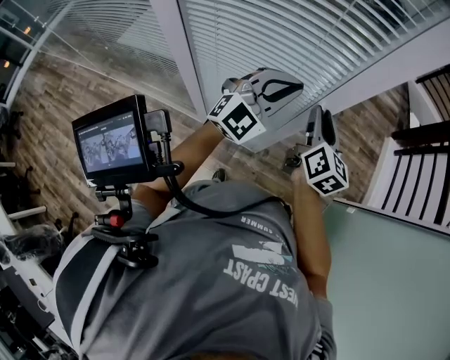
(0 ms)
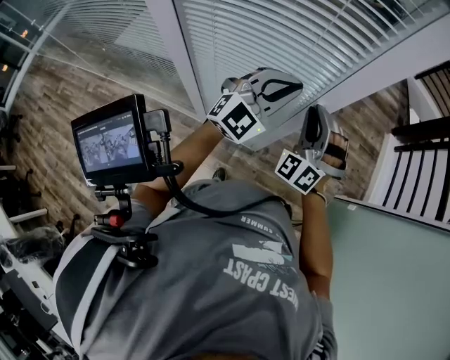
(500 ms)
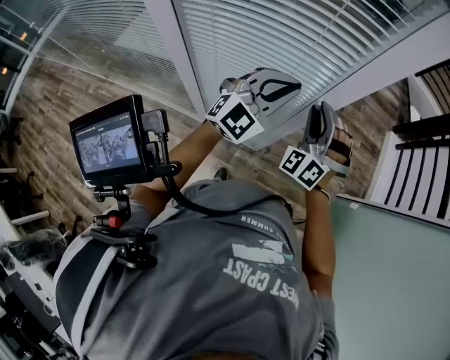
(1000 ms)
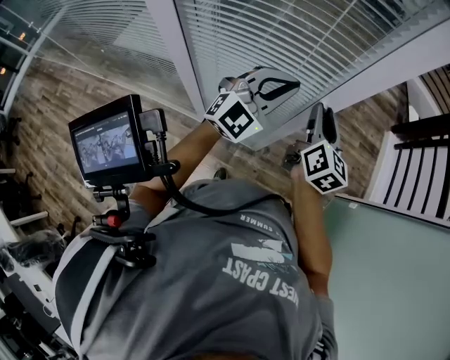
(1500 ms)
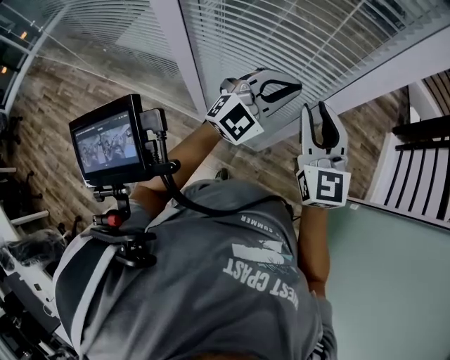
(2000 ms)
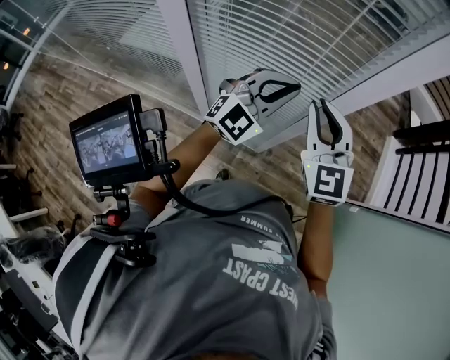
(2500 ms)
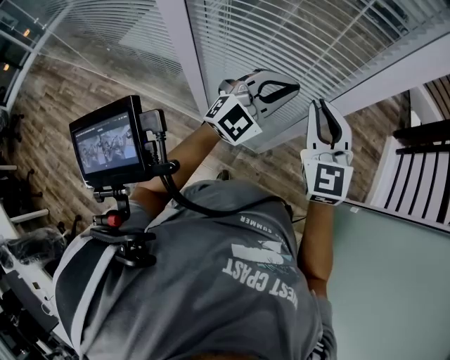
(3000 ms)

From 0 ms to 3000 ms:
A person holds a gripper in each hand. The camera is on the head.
From 1500 ms to 3000 ms: The right gripper goes approximately 10 cm upward and to the left, and twists approximately 50 degrees counterclockwise, seen from behind.

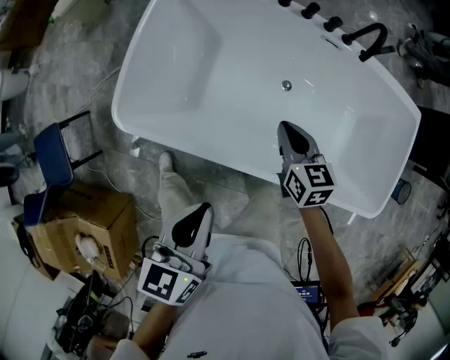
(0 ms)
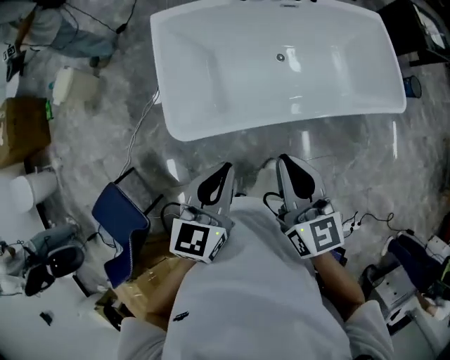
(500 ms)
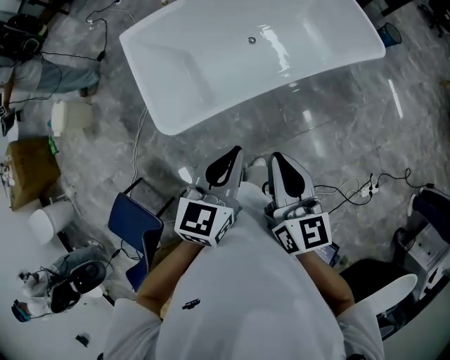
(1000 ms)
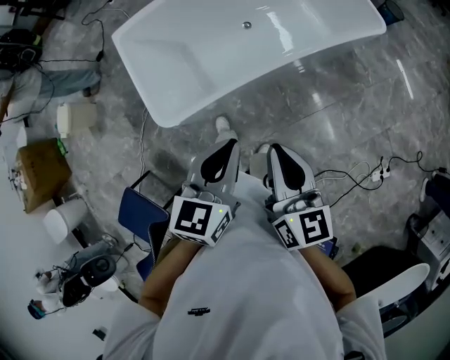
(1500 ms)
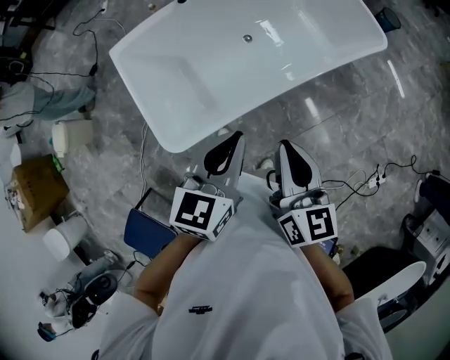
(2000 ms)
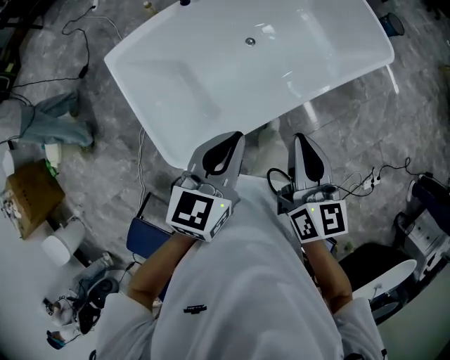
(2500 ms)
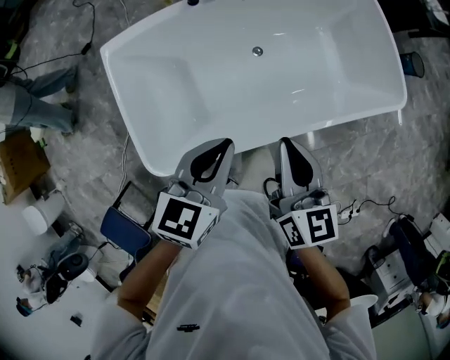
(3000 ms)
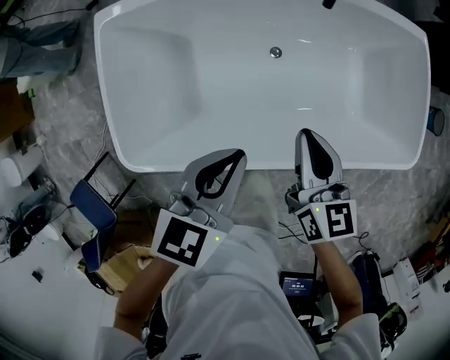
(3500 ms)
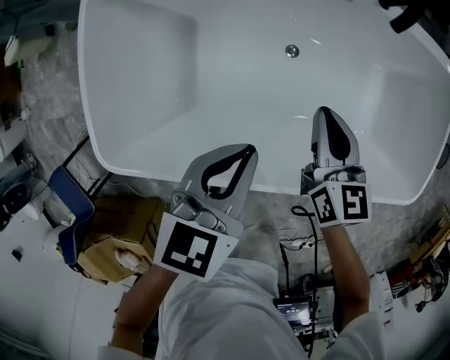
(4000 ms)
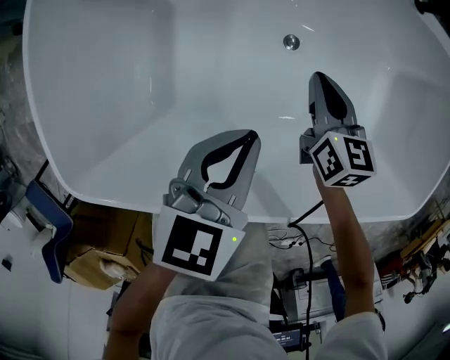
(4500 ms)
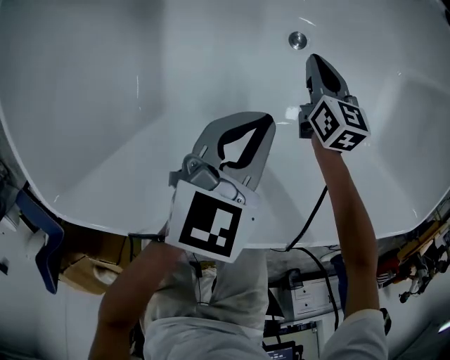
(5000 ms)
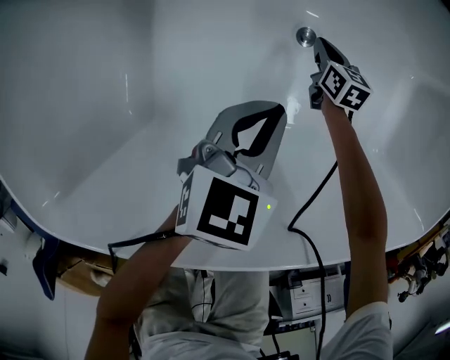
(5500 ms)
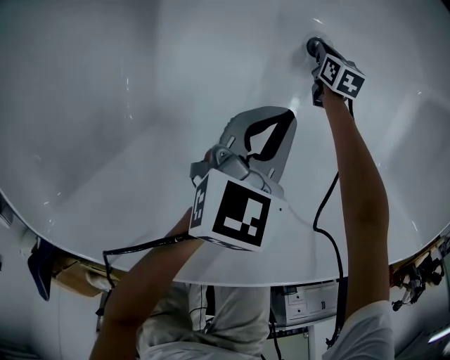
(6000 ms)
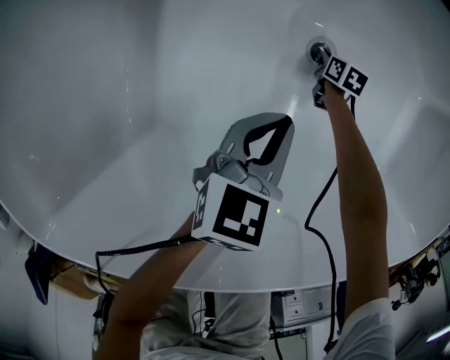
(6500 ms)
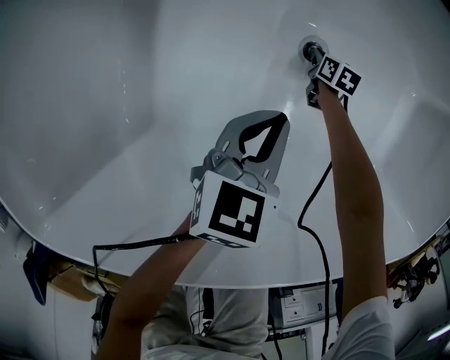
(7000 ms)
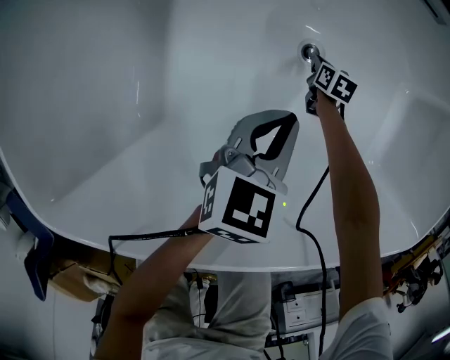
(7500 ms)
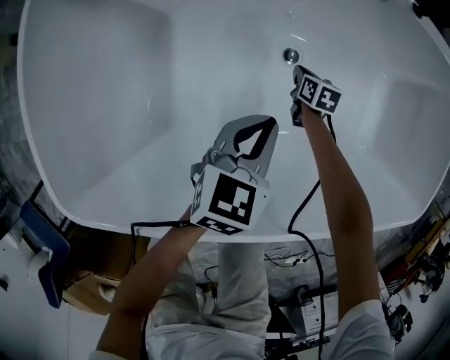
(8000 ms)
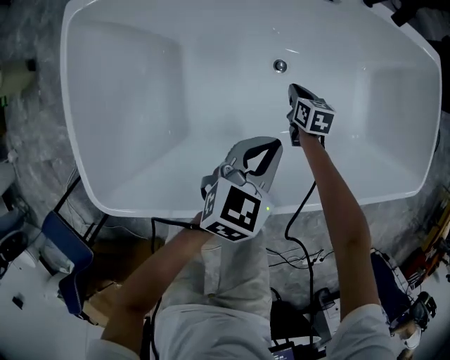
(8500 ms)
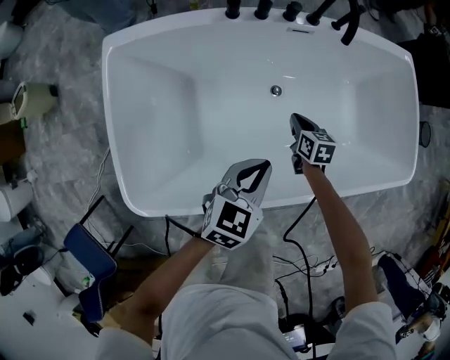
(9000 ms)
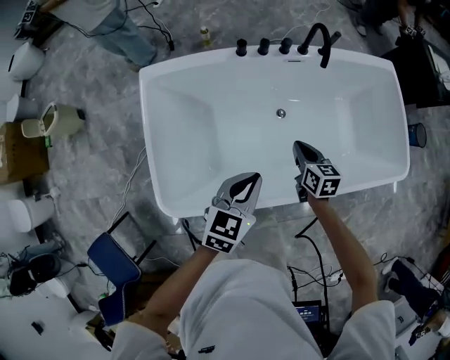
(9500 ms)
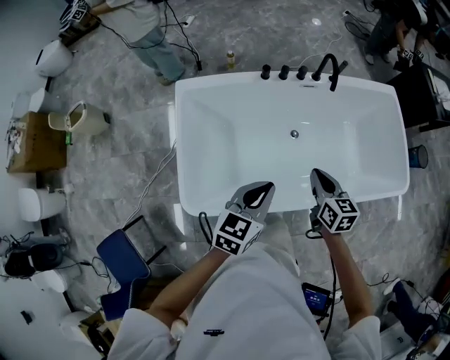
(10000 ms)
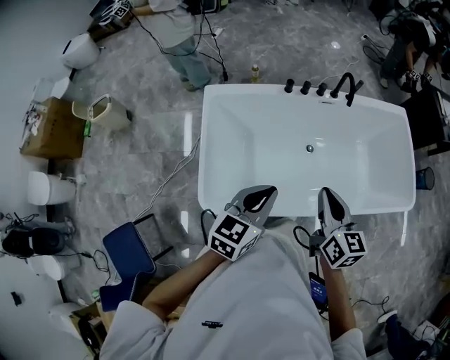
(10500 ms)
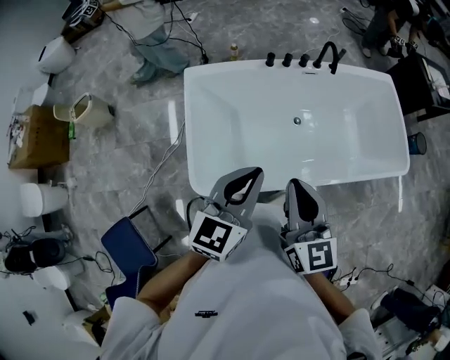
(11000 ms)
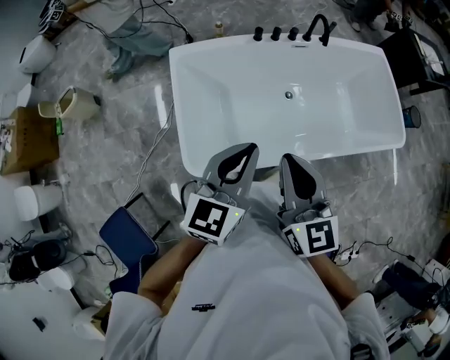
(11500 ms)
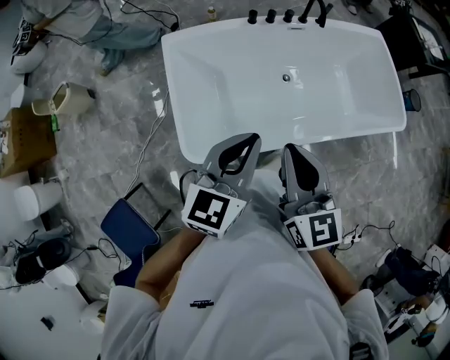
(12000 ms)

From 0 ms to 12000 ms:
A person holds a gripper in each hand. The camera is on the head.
From 0 ms to 2000 ms: The left gripper goes about 15 cm upward, and rotates some 50 degrees; the right gripper ends up approximately 40 cm from where it was, and swivels approximately 50 degrees.
From 2000 ms to 4000 ms: The right gripper moves some 60 cm, and turns by approximately 40 degrees, while the left gripper ends up some 40 cm from where it was, and turns by about 30 degrees.
From 4000 ms to 6000 ms: The right gripper heads downward, covering roughly 70 cm, and swivels about 30 degrees. The left gripper is displaced downward by about 40 cm.
From 6000 ms to 8000 ms: The two grippers go some 15 cm upward and backward.
From 8000 ms to 10000 ms: The two grippers go about 50 cm upward. The right gripper changes its angle by about 20 degrees.
From 10000 ms to 12000 ms: The left gripper moves upward, backward and to the left, roughly 15 cm. The right gripper is displaced upward, backward and to the left by about 30 cm, and changes its angle by some 30 degrees.

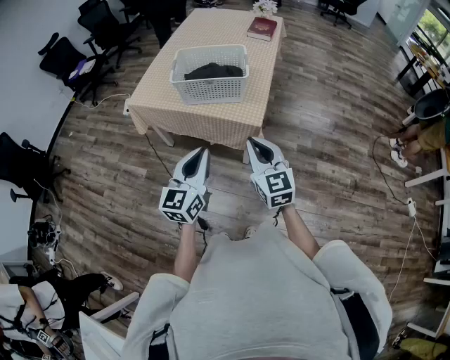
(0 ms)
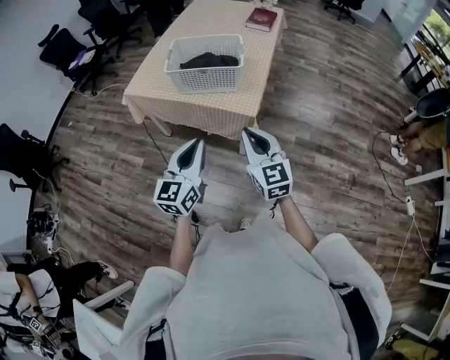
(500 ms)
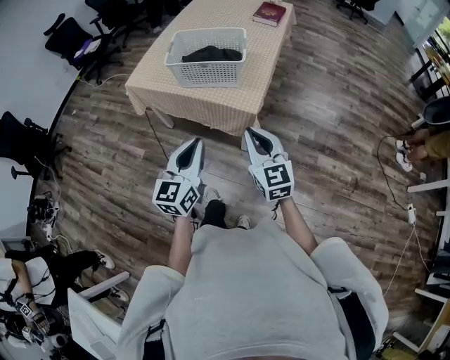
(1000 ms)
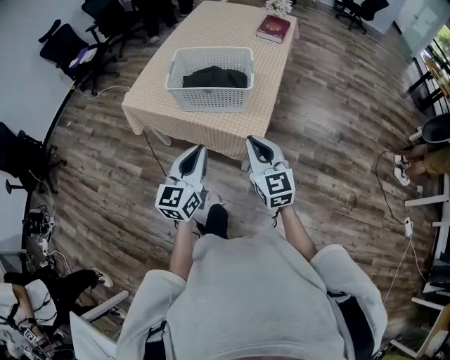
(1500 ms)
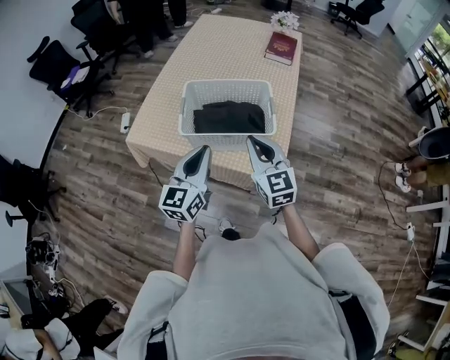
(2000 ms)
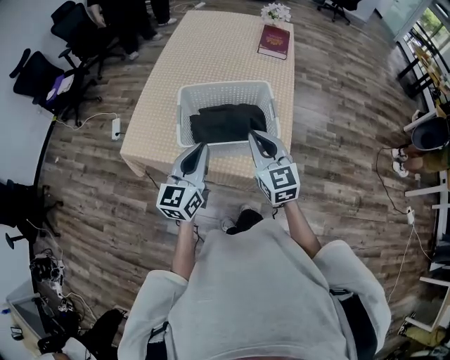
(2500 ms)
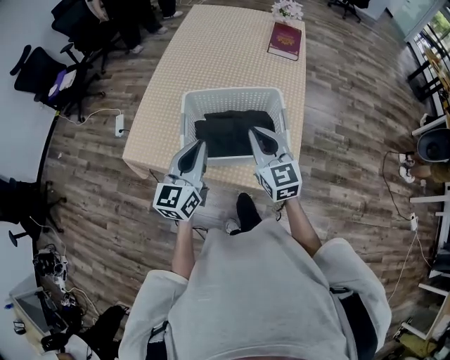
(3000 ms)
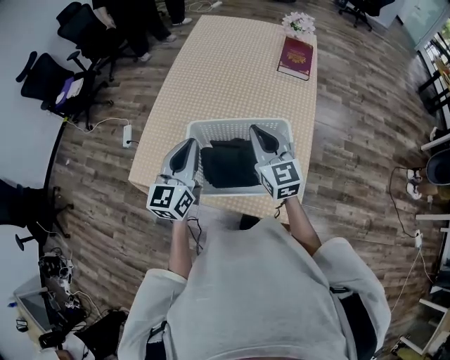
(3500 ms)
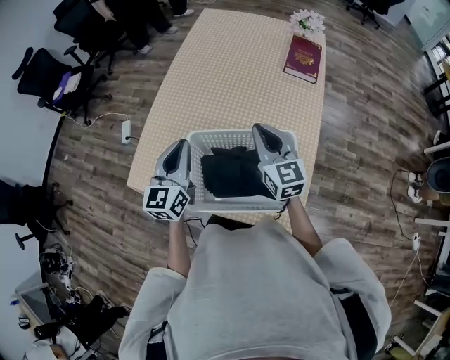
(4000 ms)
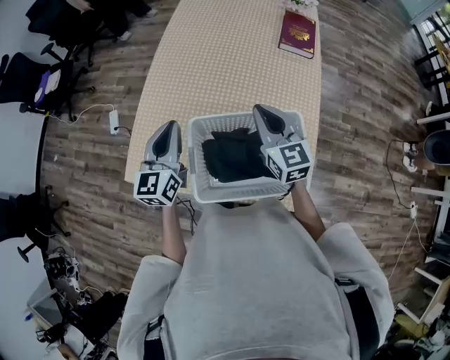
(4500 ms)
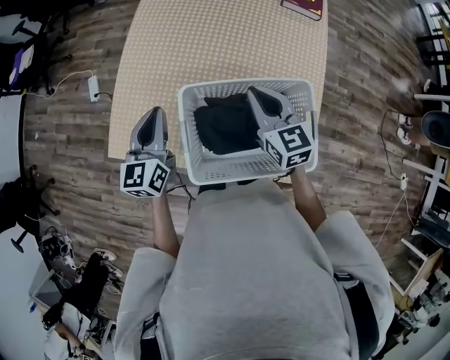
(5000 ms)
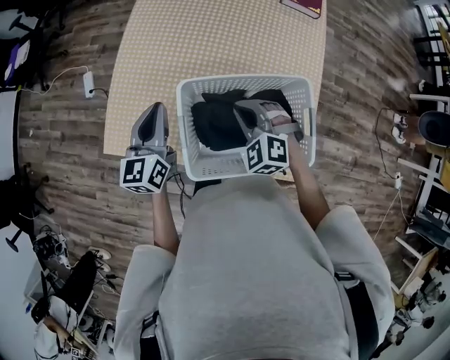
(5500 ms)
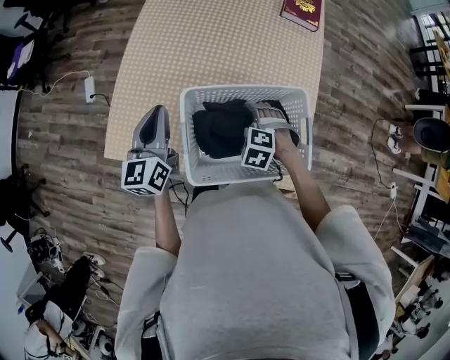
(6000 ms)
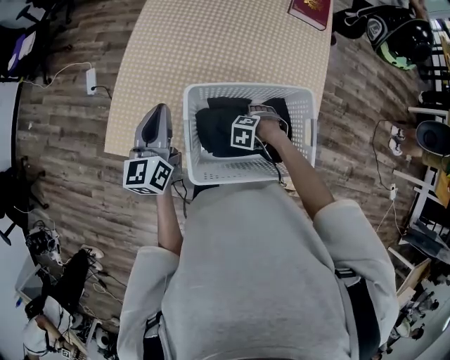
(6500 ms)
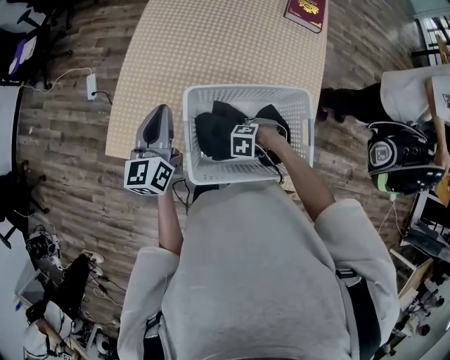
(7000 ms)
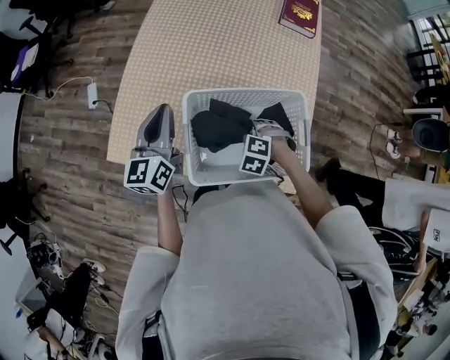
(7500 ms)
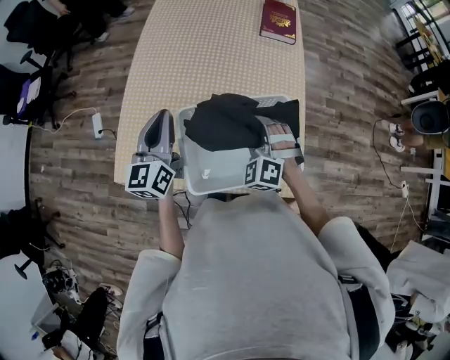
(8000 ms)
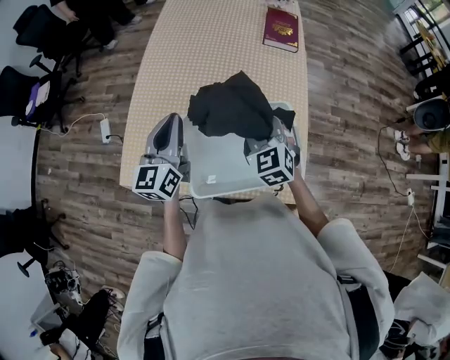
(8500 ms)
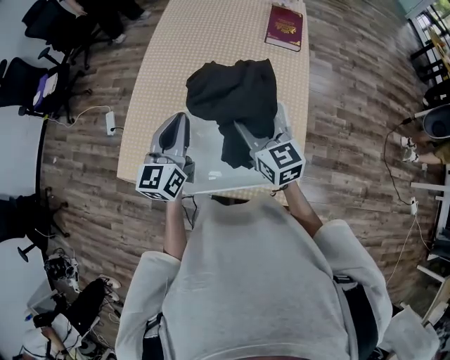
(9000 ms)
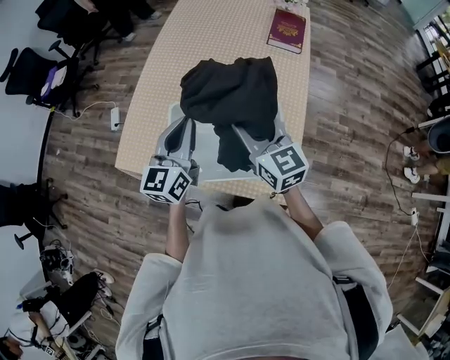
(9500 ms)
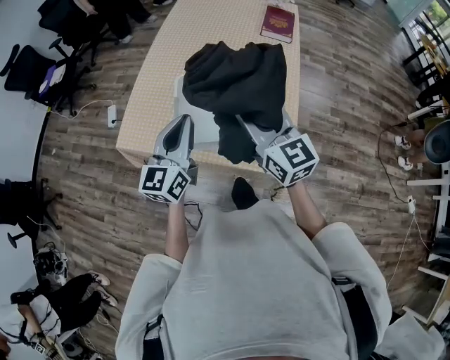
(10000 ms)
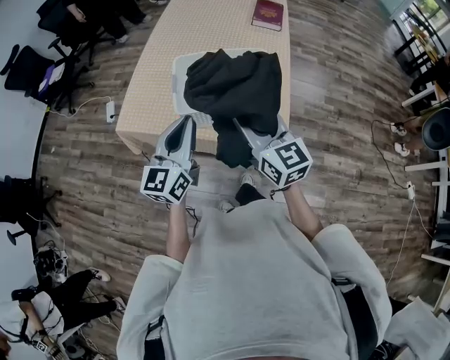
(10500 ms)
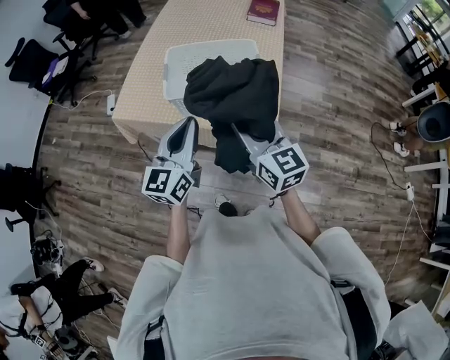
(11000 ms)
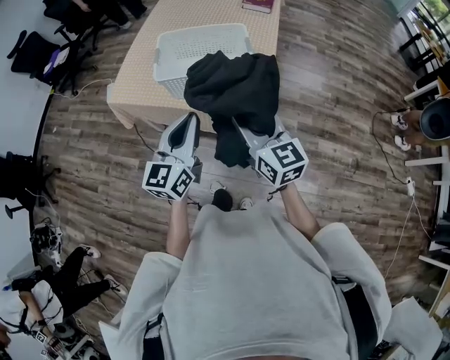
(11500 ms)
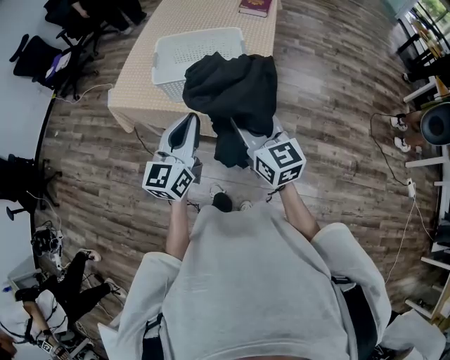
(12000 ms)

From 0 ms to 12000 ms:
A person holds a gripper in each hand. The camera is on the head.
From 0 ms to 2000 ms: Both grippers move forward, roughly 30 cm.
From 2000 ms to 4000 ms: The grippers both shift forward by about 30 cm.
From 4000 ms to 6000 ms: The right gripper moves downward, approximately 25 cm, tips its fingers downward by approximately 70 degrees, and opens; the left gripper shifts some 10 cm downward.
From 6000 ms to 8000 ms: The left gripper goes some 5 cm upward; the right gripper travels upward by about 15 cm, tilts its fingers some 40 degrees upward, and closes its fingers.
From 8000 ms to 10000 ms: The left gripper heads backward, covering some 20 cm, while the right gripper heads upward and backward, covering roughly 25 cm, and tips its fingers upward by approximately 30 degrees.
From 10000 ms to 12000 ms: The left gripper moves backward and to the right, some 30 cm; the right gripper goes roughly 25 cm backward.
